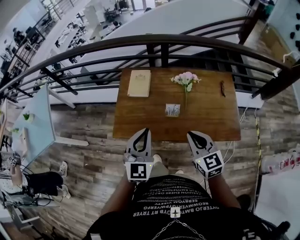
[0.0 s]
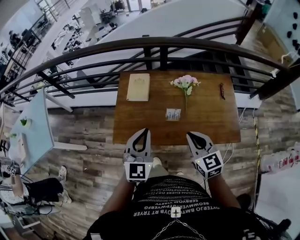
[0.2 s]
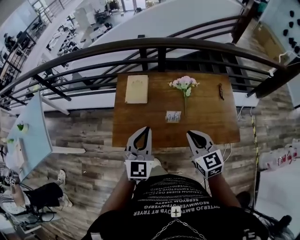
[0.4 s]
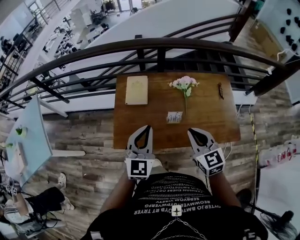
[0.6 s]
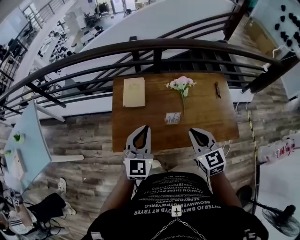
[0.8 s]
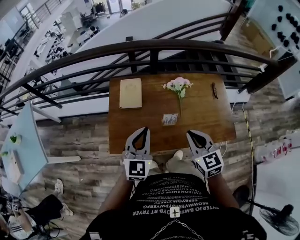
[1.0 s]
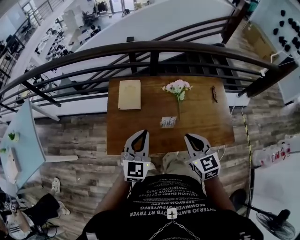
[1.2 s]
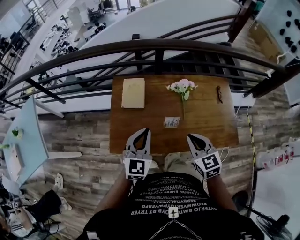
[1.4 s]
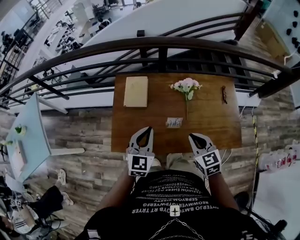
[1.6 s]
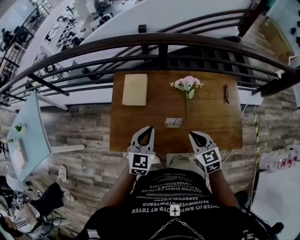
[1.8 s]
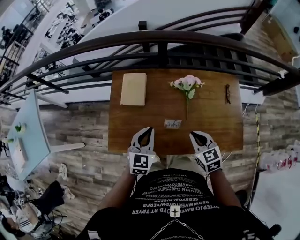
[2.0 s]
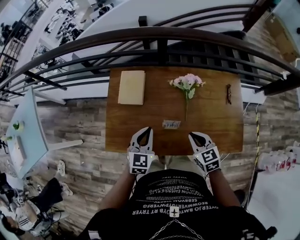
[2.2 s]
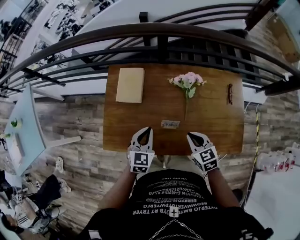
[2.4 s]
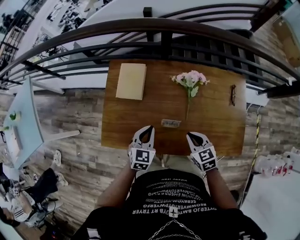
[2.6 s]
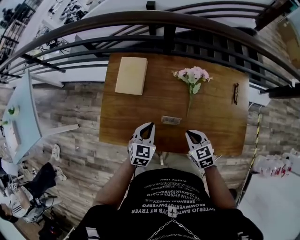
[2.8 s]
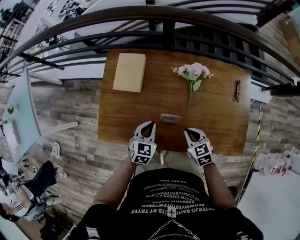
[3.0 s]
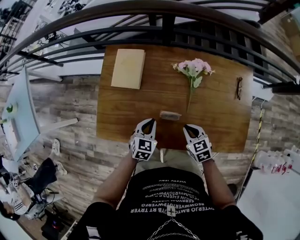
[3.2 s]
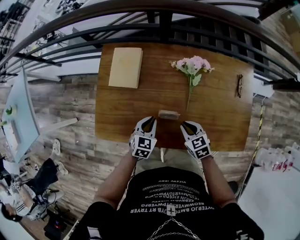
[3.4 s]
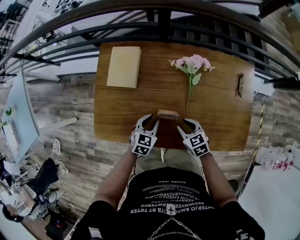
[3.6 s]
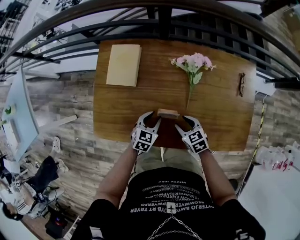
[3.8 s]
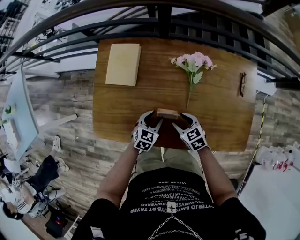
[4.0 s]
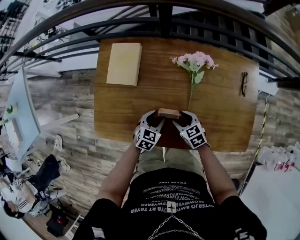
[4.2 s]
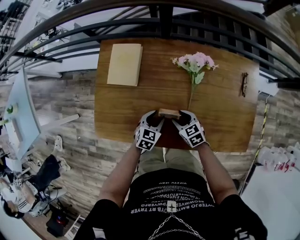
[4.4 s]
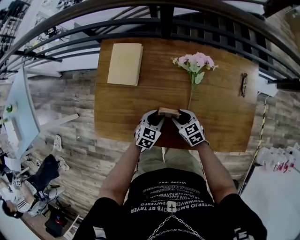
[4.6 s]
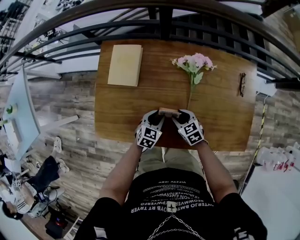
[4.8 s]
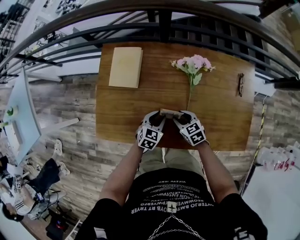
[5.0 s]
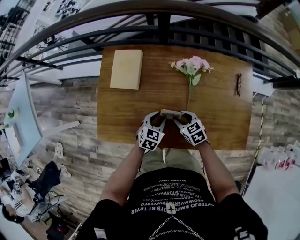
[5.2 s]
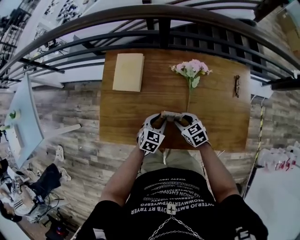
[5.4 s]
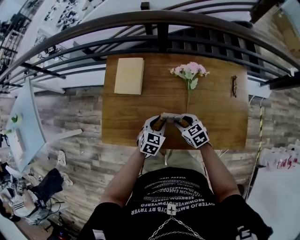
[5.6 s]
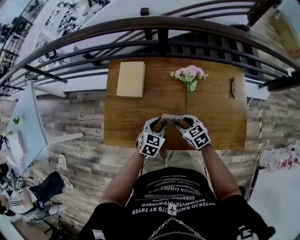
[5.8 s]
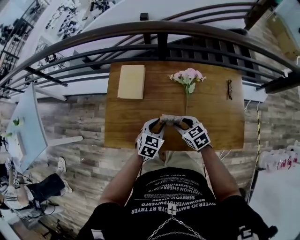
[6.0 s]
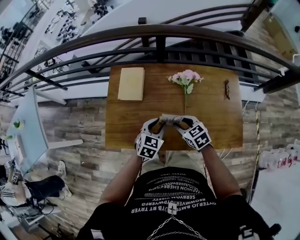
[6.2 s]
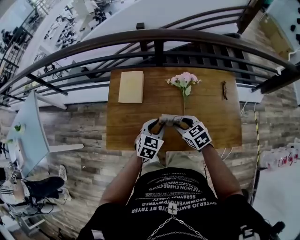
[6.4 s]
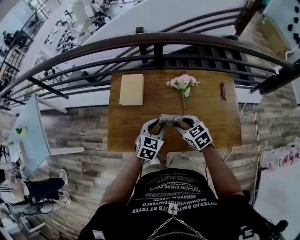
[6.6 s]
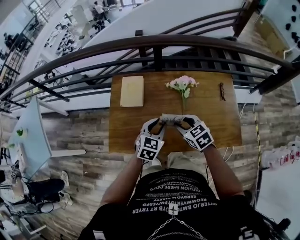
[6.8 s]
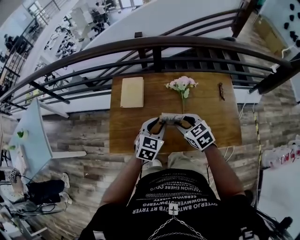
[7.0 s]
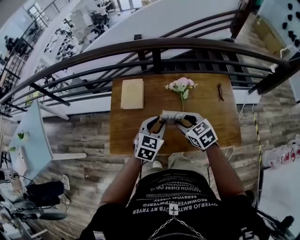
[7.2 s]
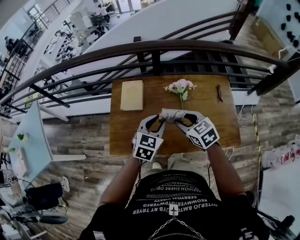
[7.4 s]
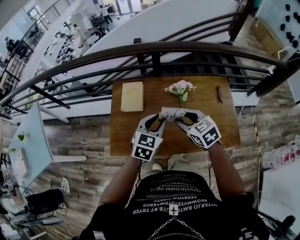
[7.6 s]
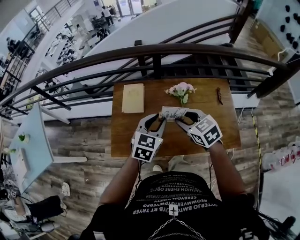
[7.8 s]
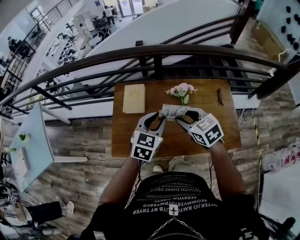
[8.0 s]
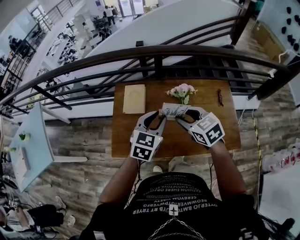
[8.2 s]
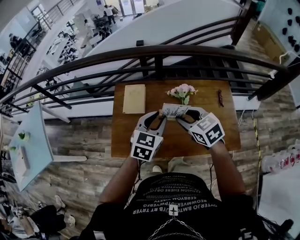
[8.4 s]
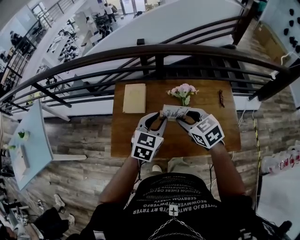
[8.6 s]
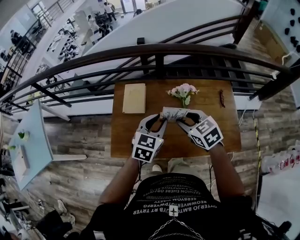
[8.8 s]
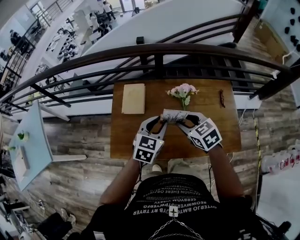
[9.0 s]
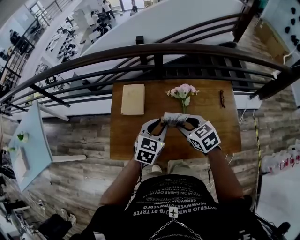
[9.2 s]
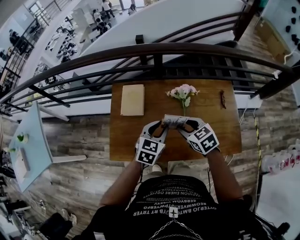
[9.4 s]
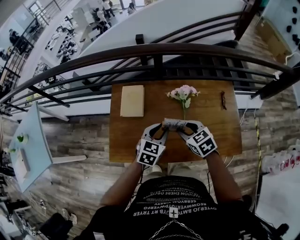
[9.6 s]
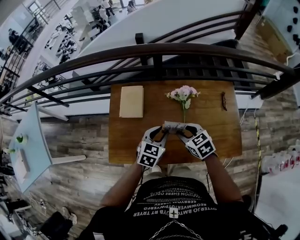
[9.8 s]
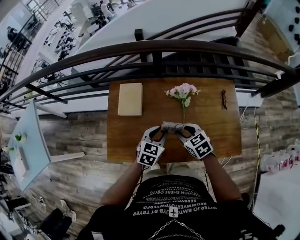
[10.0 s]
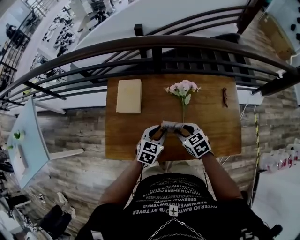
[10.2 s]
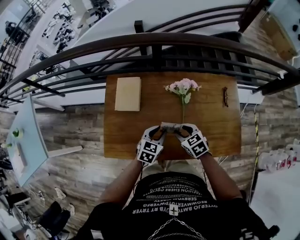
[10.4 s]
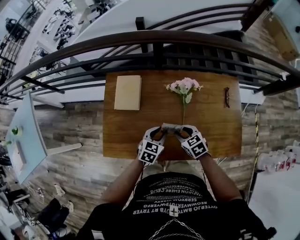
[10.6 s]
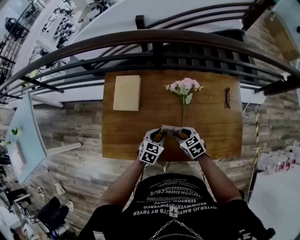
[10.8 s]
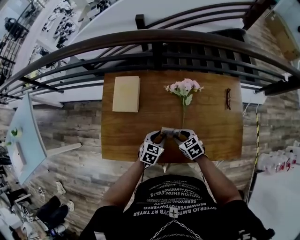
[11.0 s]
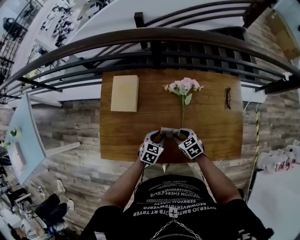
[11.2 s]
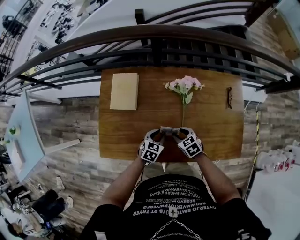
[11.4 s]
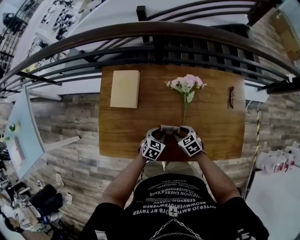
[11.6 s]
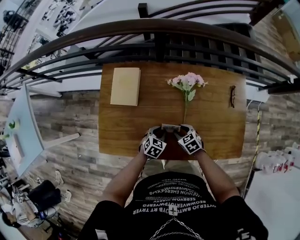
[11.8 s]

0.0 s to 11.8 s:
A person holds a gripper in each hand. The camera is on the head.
0.0 to 1.4 s: The two grippers go roughly 10 cm forward.
1.4 to 3.0 s: Both grippers move downward, about 25 cm. The left gripper changes its angle by roughly 30 degrees. The right gripper swivels some 20 degrees.
3.0 to 4.4 s: Both grippers move downward, approximately 10 cm. The left gripper opens up. Meanwhile the right gripper opens its fingers.
4.4 to 6.0 s: The grippers both shift upward by about 15 cm.
6.0 to 7.4 s: Both grippers move upward, some 15 cm.
8.8 to 10.4 s: The two grippers go approximately 20 cm downward.
10.4 to 11.8 s: The two grippers go some 15 cm downward.

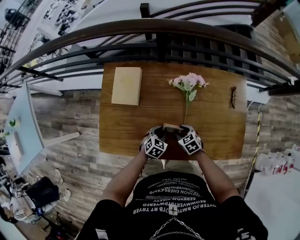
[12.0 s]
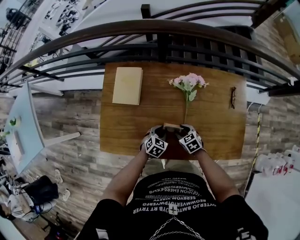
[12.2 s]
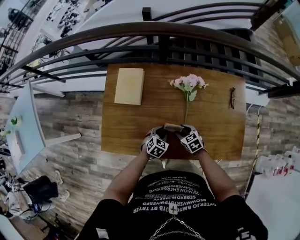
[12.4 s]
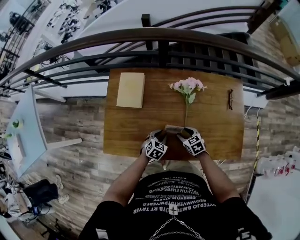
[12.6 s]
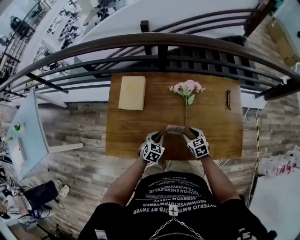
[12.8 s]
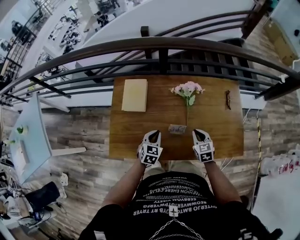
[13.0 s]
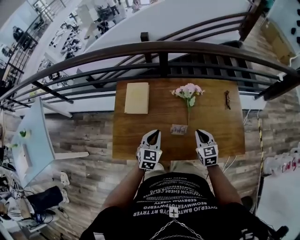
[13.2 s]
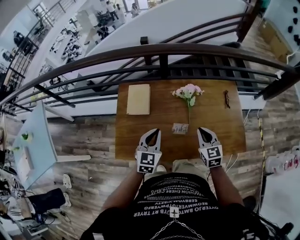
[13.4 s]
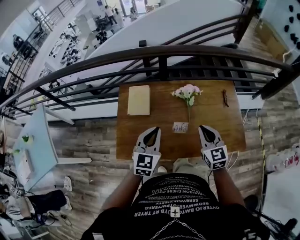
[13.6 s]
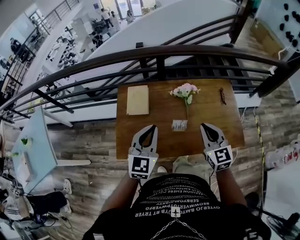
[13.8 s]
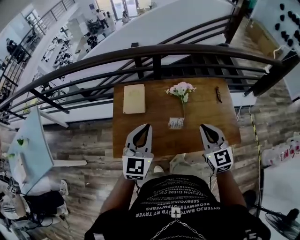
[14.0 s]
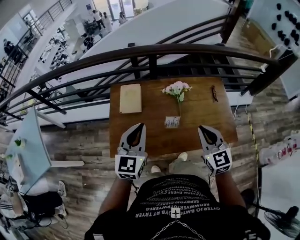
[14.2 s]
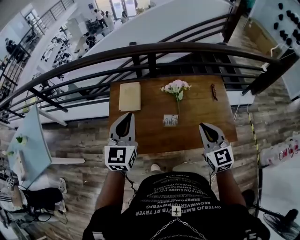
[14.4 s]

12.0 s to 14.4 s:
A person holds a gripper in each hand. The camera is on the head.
12.0 to 13.2 s: Both grippers move upward, approximately 20 cm. The left gripper swivels roughly 30 degrees, and closes up, while the right gripper changes its angle by approximately 40 degrees, and closes up.
13.2 to 14.4 s: The left gripper moves upward, some 25 cm, and rotates approximately 20 degrees. Meanwhile the right gripper moves upward and backward, approximately 25 cm.

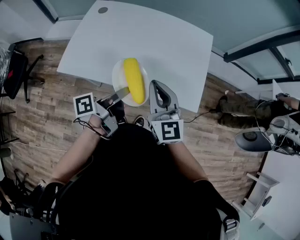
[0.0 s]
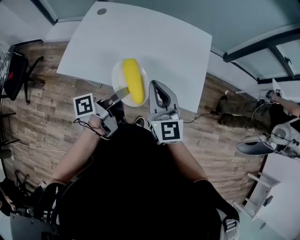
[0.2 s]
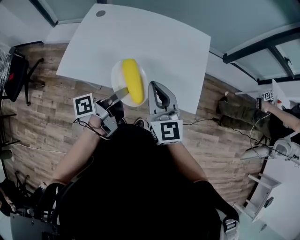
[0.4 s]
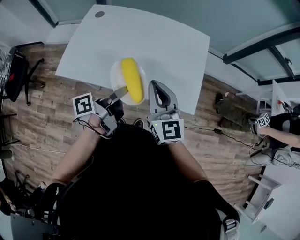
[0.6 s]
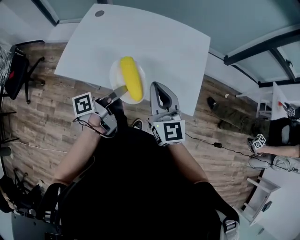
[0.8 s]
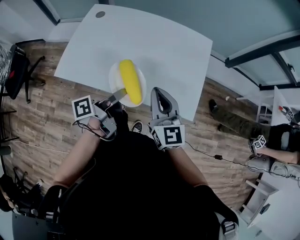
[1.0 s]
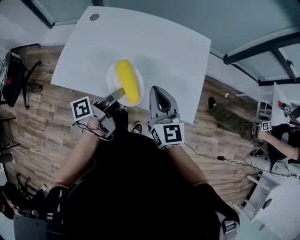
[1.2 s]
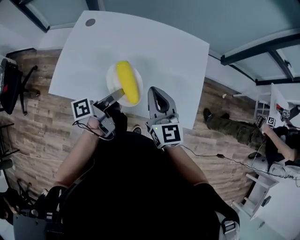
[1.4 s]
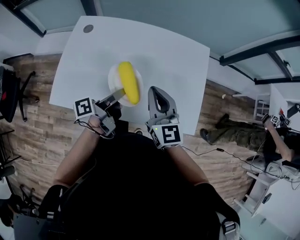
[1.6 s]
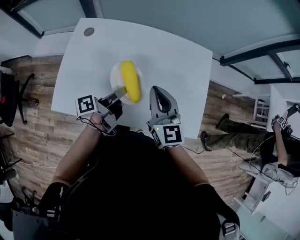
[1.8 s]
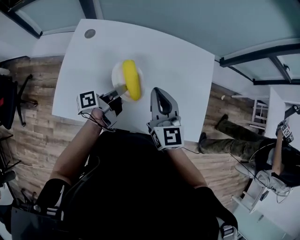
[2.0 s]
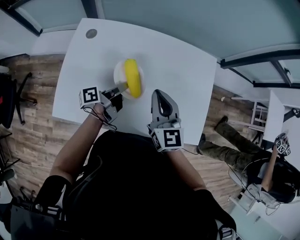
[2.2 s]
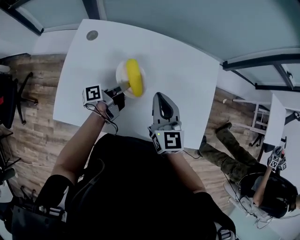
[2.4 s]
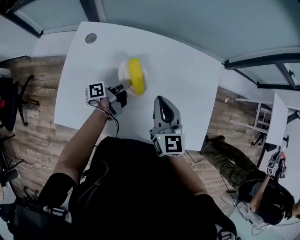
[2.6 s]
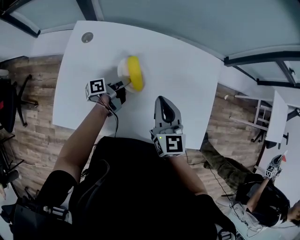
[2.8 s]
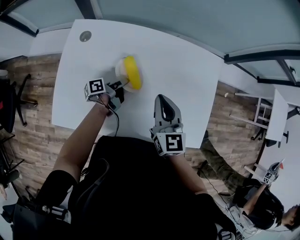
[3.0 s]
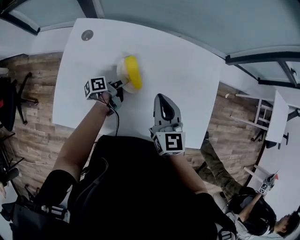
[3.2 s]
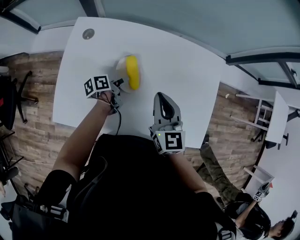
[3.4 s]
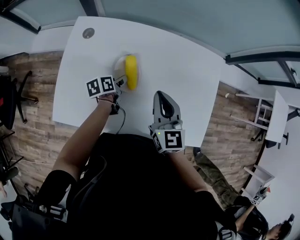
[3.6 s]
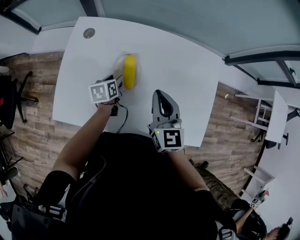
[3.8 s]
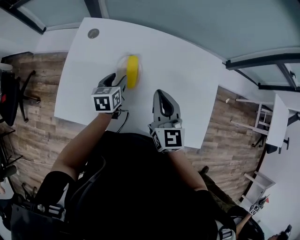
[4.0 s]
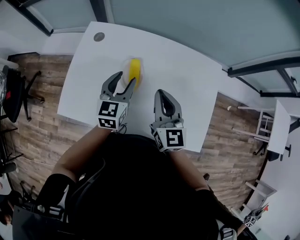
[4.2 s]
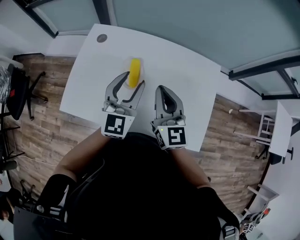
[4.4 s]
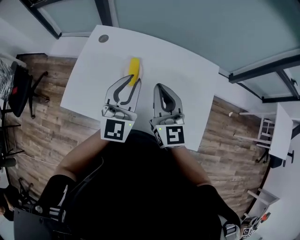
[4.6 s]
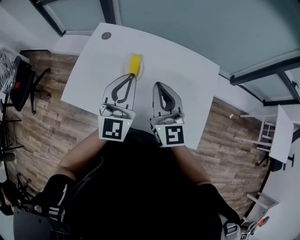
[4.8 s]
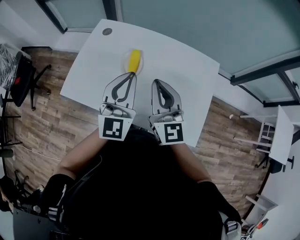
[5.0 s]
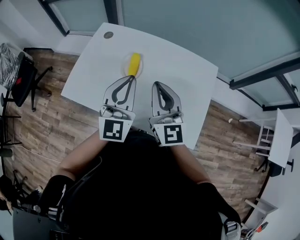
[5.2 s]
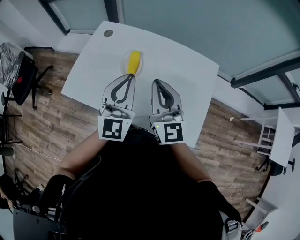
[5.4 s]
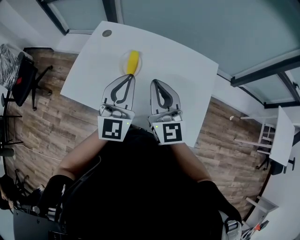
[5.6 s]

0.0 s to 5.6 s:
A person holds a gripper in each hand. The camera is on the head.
0.0 to 1.4 s: The grippers both shift forward by about 10 cm.
1.4 to 2.8 s: The right gripper is displaced forward and to the left by approximately 10 cm. Meanwhile the left gripper travels forward, downward and to the left by roughly 25 cm.
2.8 to 4.2 s: The left gripper heads upward, covering some 15 cm, twists some 80 degrees clockwise, seen from behind, and opens.
4.2 to 5.6 s: The right gripper is displaced upward and backward by about 10 cm. The left gripper moves upward and backward, approximately 20 cm, turns by about 30 degrees, and closes.

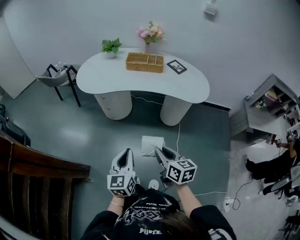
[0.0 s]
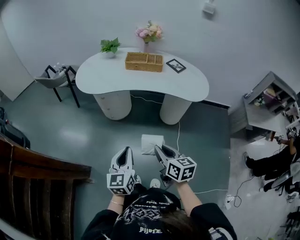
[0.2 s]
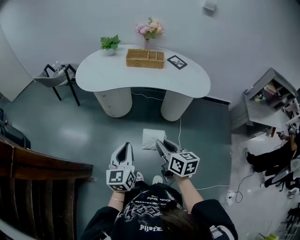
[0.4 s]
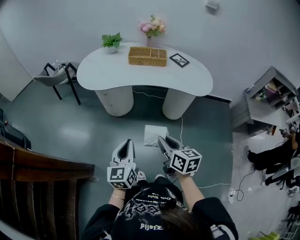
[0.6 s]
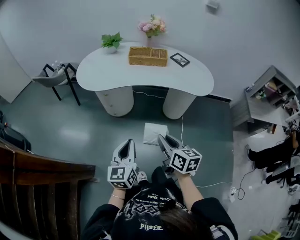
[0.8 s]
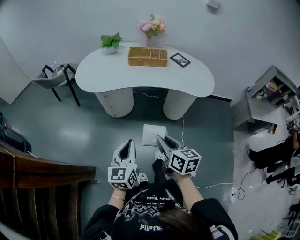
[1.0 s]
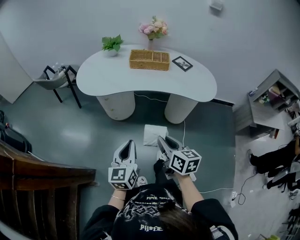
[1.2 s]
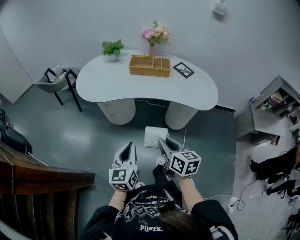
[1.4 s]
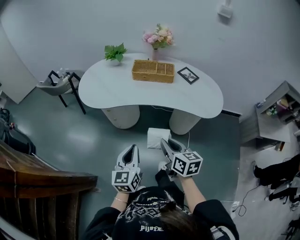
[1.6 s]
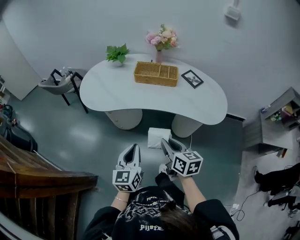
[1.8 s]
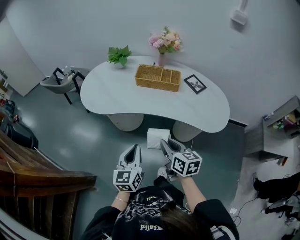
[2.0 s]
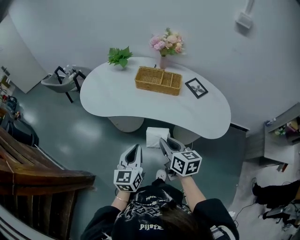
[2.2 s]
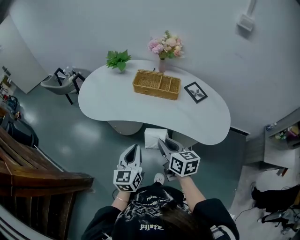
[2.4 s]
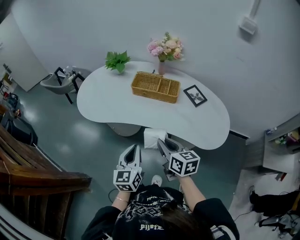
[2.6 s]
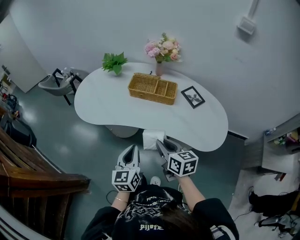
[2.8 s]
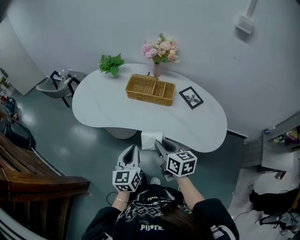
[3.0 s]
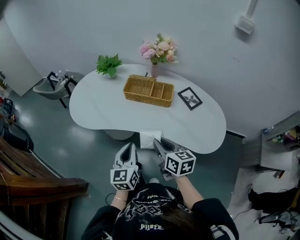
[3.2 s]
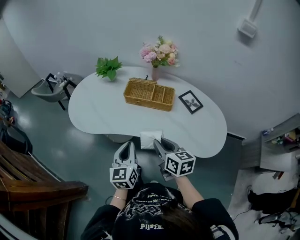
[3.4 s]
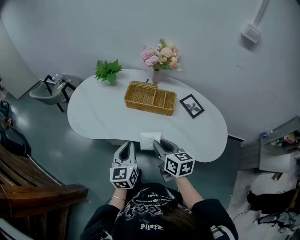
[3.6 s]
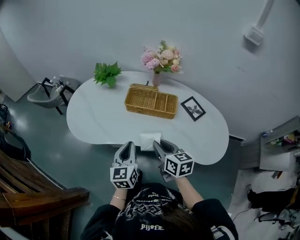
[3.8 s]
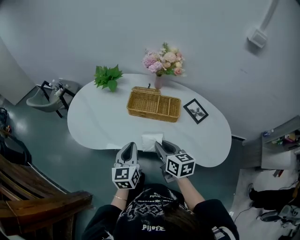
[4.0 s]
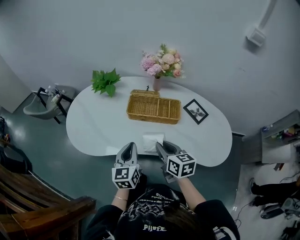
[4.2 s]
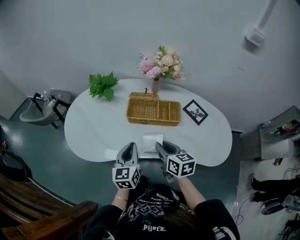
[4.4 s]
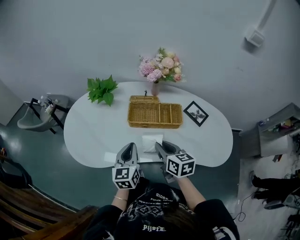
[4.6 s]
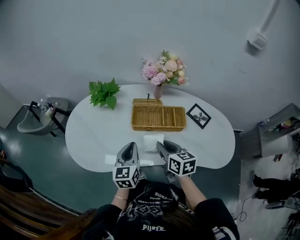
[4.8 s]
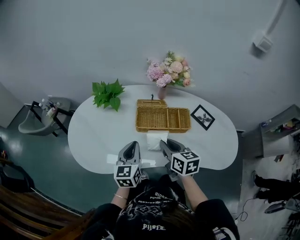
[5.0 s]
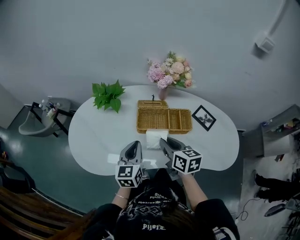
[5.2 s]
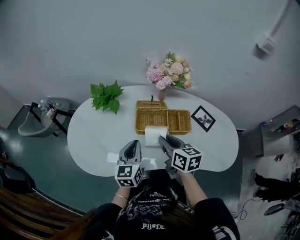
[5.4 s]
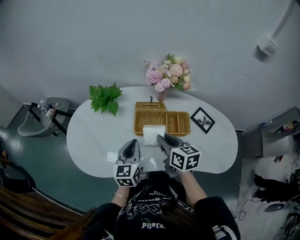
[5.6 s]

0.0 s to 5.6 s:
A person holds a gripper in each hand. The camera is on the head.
0.0 to 1.4 s: The grippers both shift forward by about 15 cm.
1.4 to 2.8 s: Both grippers travel together forward and to the right, approximately 25 cm.
2.8 to 4.2 s: The two grippers go roughly 20 cm forward.
4.2 to 5.6 s: Both grippers move forward, about 15 cm.
